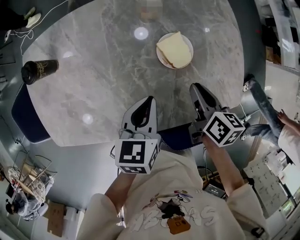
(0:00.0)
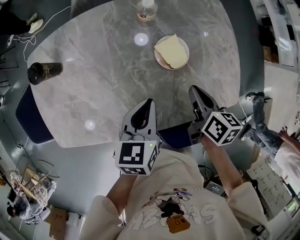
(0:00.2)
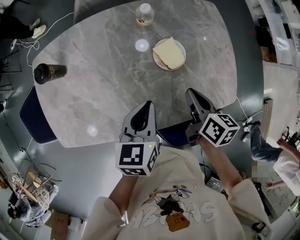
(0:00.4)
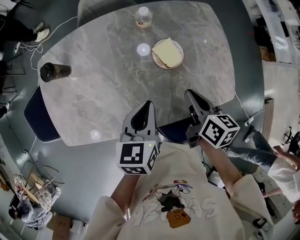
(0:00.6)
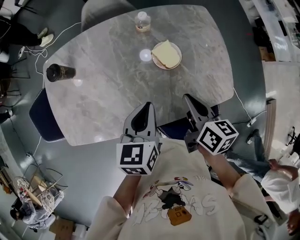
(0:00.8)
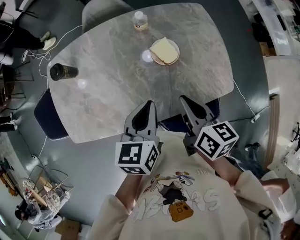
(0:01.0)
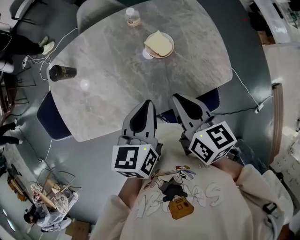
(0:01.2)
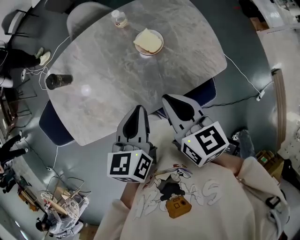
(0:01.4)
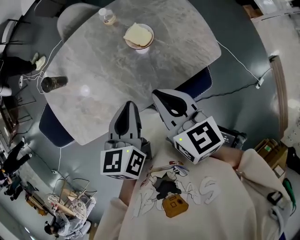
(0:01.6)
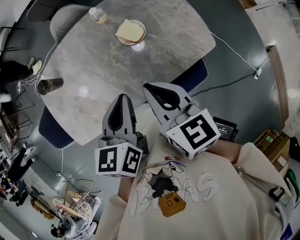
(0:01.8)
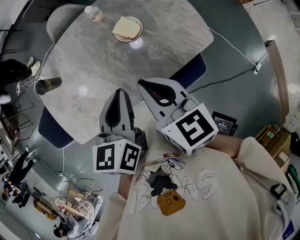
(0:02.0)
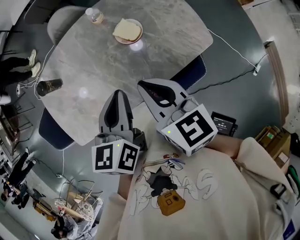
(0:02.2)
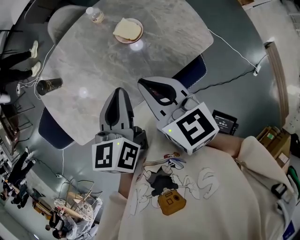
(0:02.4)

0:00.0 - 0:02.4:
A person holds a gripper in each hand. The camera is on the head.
0:00.0 - 0:01.2: The grippers both shift upward and backward by some 20 cm.
0:01.2 - 0:02.4: There are only small adjustments of the grippers.

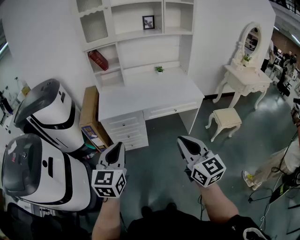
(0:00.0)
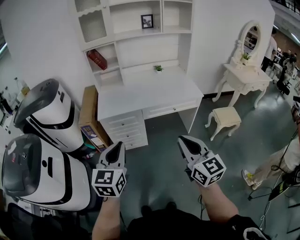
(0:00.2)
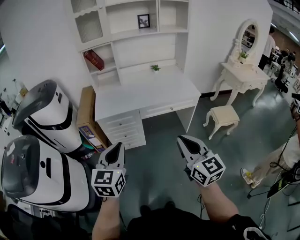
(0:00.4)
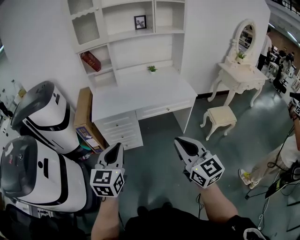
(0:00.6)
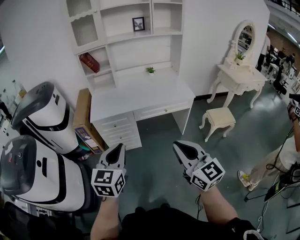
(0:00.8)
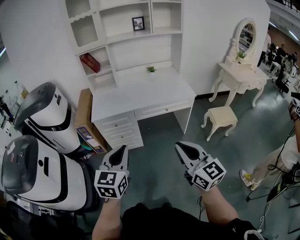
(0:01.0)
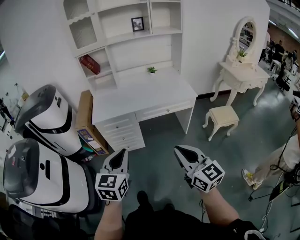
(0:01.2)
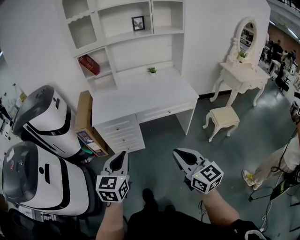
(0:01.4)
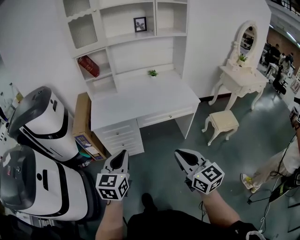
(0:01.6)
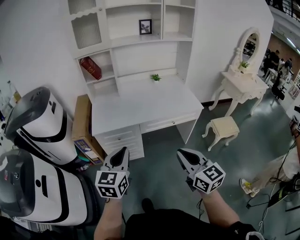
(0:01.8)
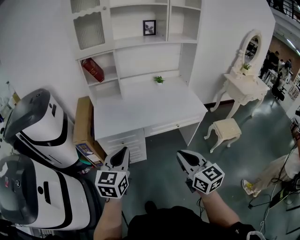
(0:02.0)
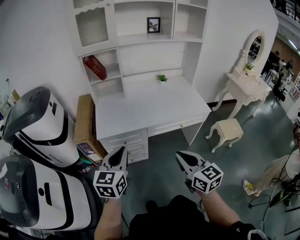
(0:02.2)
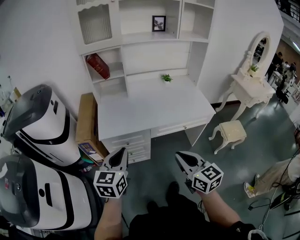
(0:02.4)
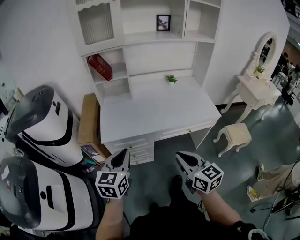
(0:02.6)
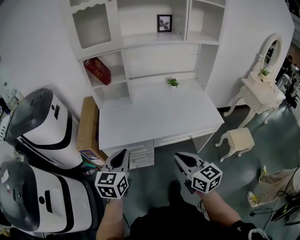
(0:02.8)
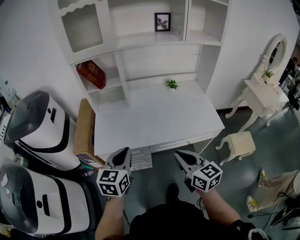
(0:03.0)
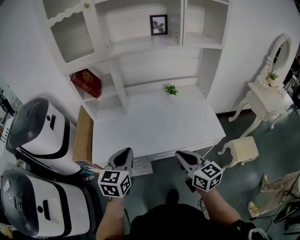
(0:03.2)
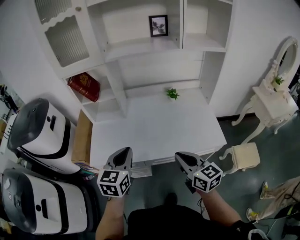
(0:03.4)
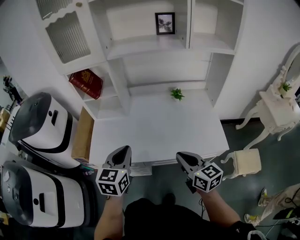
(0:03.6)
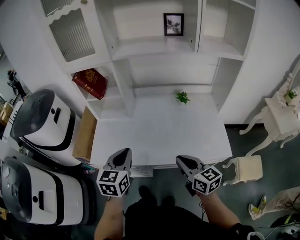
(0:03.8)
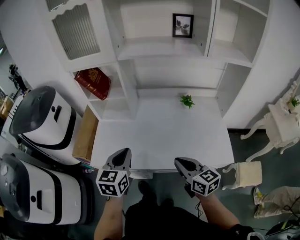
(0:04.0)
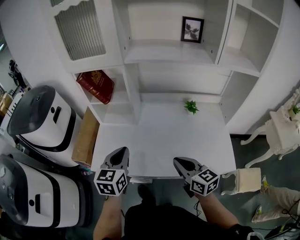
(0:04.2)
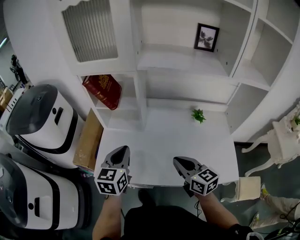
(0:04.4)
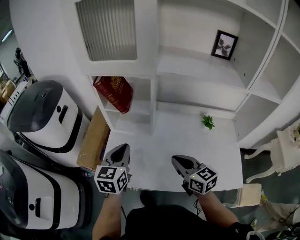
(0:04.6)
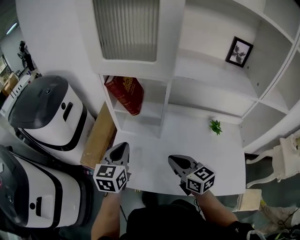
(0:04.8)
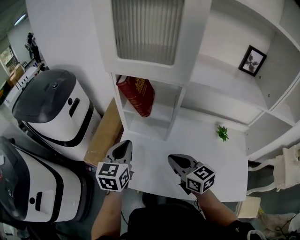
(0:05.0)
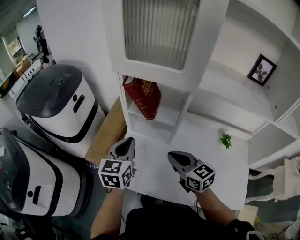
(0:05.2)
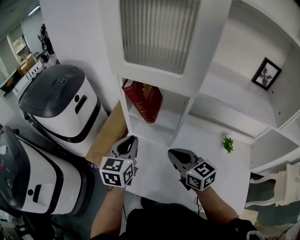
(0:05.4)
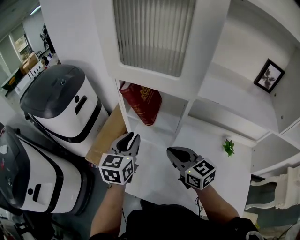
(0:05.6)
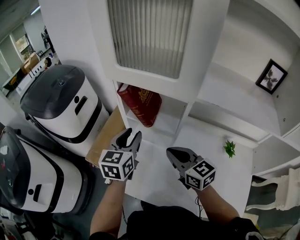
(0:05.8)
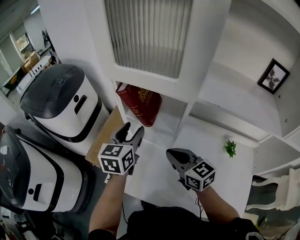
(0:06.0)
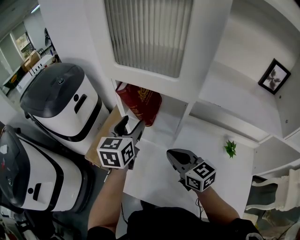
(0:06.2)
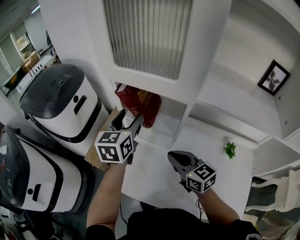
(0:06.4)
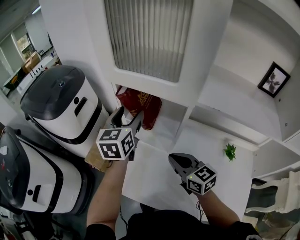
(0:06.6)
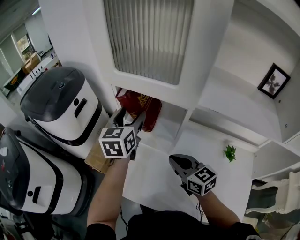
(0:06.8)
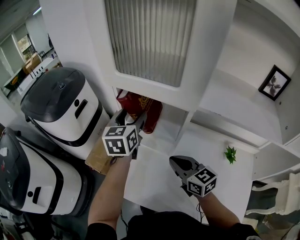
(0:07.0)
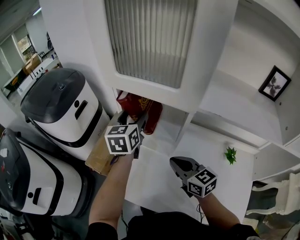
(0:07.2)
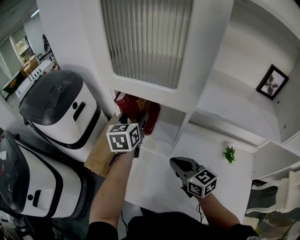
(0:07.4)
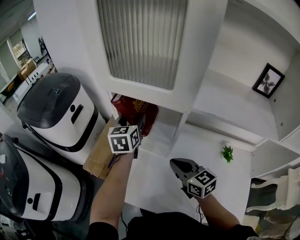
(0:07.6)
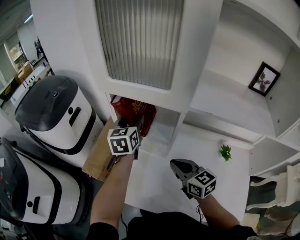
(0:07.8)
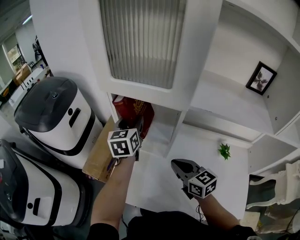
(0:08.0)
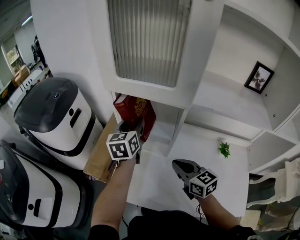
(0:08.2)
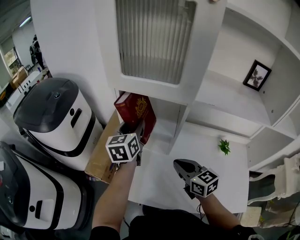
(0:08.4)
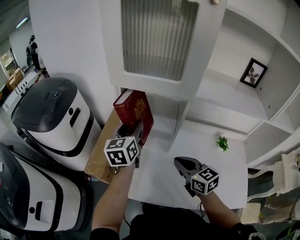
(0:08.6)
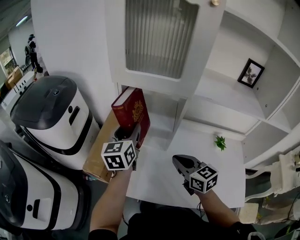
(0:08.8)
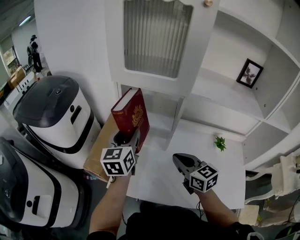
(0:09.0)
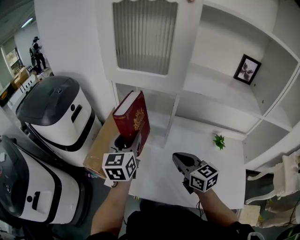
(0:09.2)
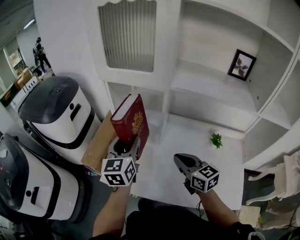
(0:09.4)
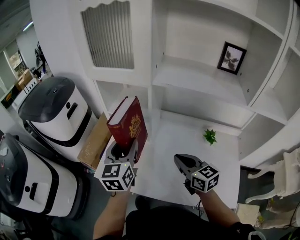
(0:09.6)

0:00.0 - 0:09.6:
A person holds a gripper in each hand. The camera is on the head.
0:00.0 - 0:01.6: The right gripper changes place by approximately 5 cm; the left gripper goes some 10 cm forward and downward.
0:01.6 - 0:03.2: The two grippers go approximately 35 cm forward.
0:03.2 - 0:04.8: The left gripper moves forward and to the left, approximately 30 cm, and rotates some 20 degrees. The right gripper goes about 30 cm forward, and changes its angle by approximately 20 degrees.
0:04.8 - 0:06.4: The left gripper heads forward and upward, covering some 20 cm, and opens. Meanwhile the right gripper moves forward, approximately 10 cm.
0:06.4 - 0:08.0: The left gripper shifts by some 5 cm.
0:08.0 - 0:09.6: The right gripper is displaced backward and to the right by some 15 cm. The left gripper travels backward by about 25 cm.

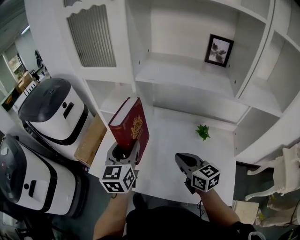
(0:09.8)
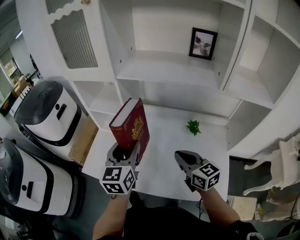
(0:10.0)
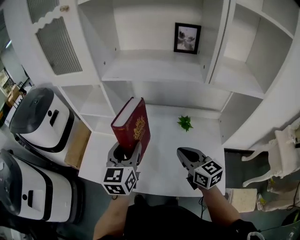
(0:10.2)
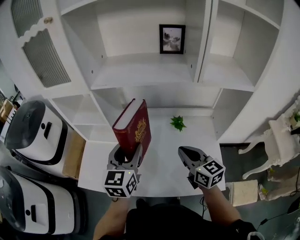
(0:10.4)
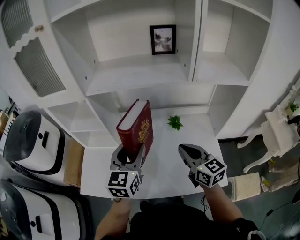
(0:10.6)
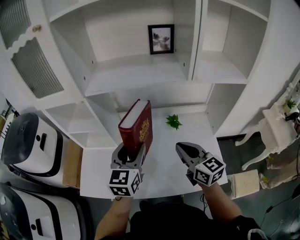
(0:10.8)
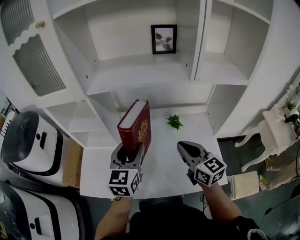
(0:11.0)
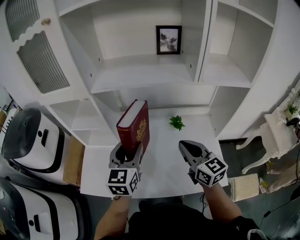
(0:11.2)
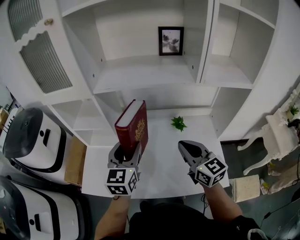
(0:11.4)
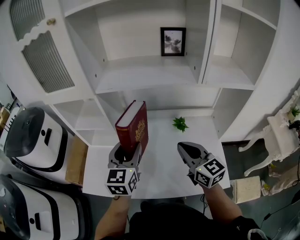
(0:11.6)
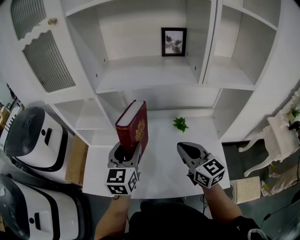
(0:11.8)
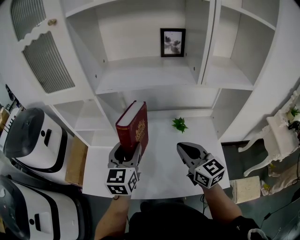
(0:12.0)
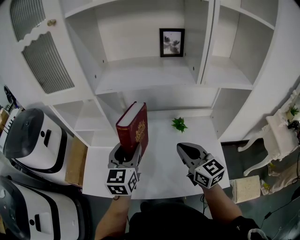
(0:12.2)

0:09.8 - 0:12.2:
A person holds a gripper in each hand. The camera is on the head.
0:09.8 - 0:11.0: The right gripper is displaced to the right and upward by about 15 cm, and turns by some 20 degrees; the left gripper goes some 15 cm to the right, and changes its angle by about 20 degrees.
0:11.0 - 0:12.2: There are only small adjustments of the grippers.

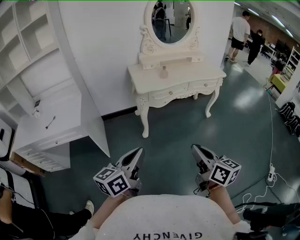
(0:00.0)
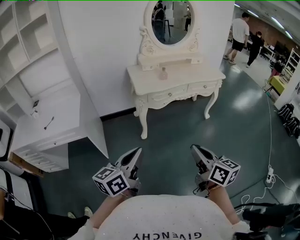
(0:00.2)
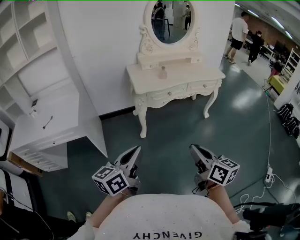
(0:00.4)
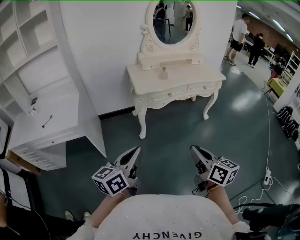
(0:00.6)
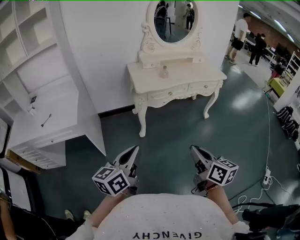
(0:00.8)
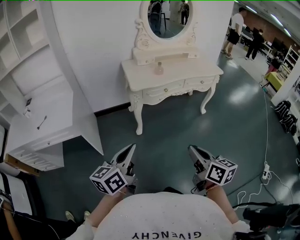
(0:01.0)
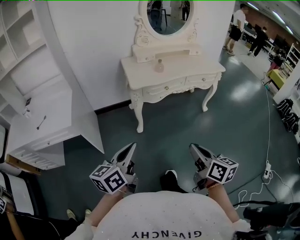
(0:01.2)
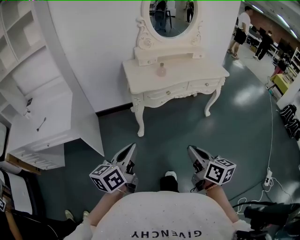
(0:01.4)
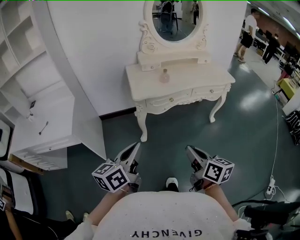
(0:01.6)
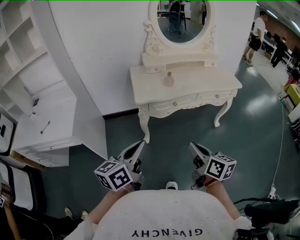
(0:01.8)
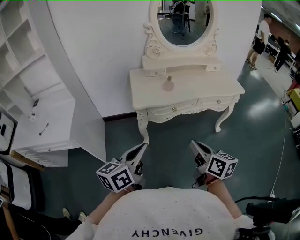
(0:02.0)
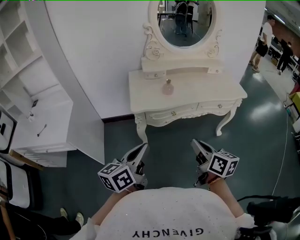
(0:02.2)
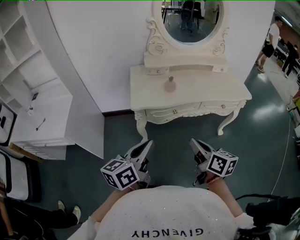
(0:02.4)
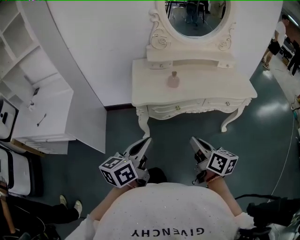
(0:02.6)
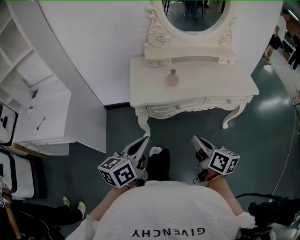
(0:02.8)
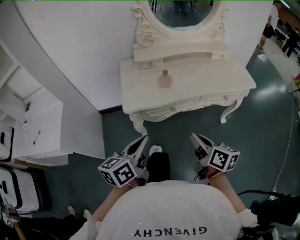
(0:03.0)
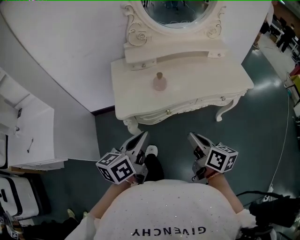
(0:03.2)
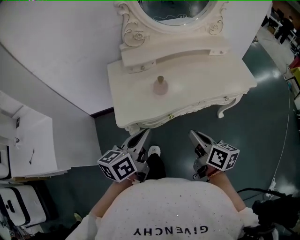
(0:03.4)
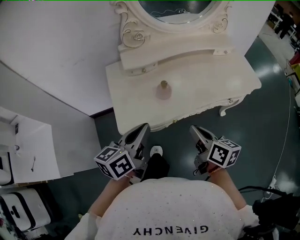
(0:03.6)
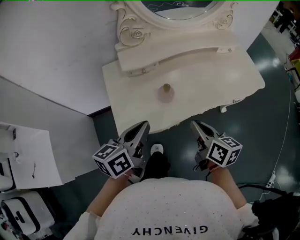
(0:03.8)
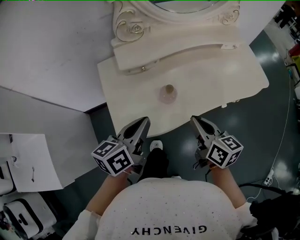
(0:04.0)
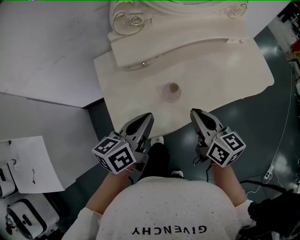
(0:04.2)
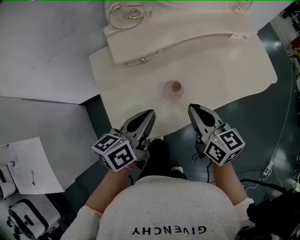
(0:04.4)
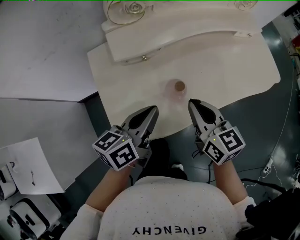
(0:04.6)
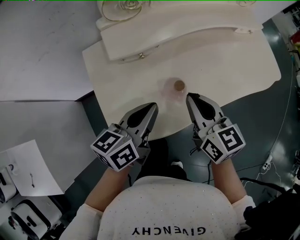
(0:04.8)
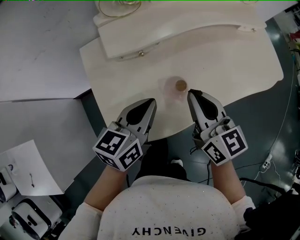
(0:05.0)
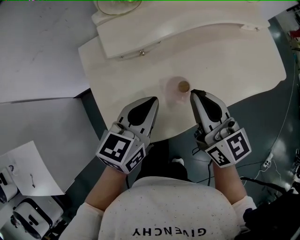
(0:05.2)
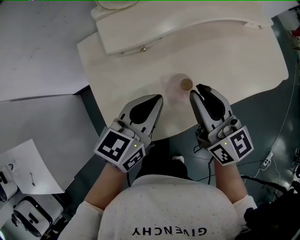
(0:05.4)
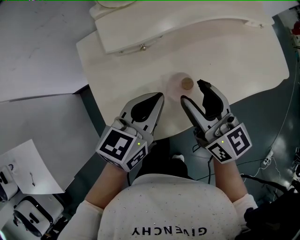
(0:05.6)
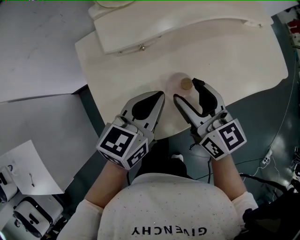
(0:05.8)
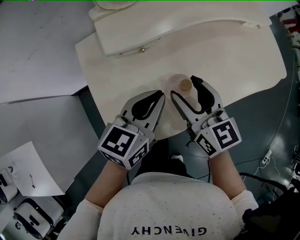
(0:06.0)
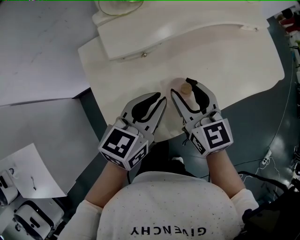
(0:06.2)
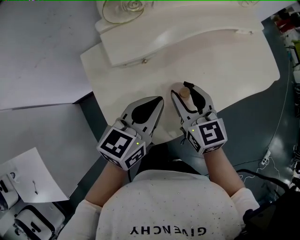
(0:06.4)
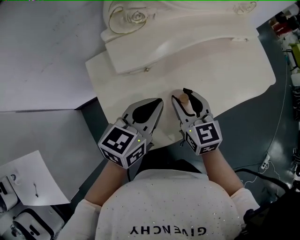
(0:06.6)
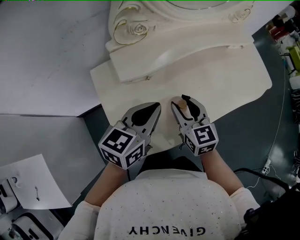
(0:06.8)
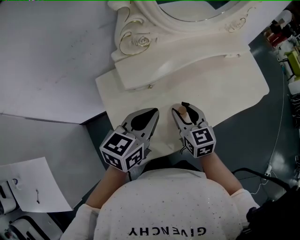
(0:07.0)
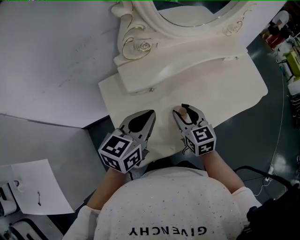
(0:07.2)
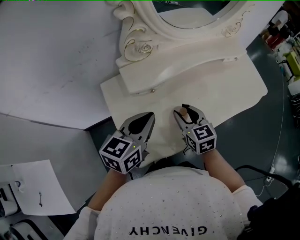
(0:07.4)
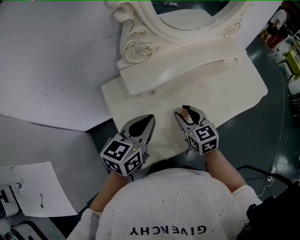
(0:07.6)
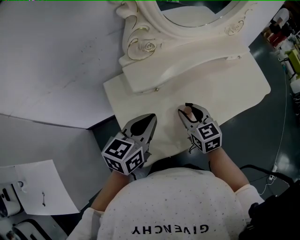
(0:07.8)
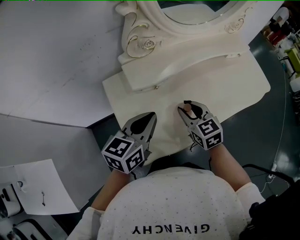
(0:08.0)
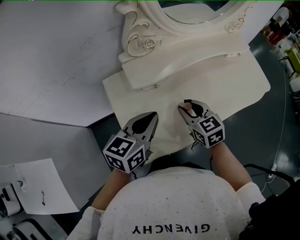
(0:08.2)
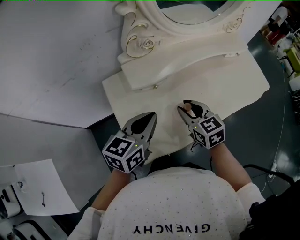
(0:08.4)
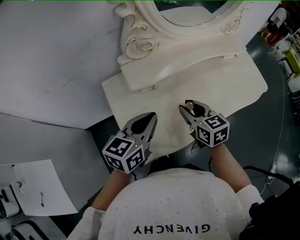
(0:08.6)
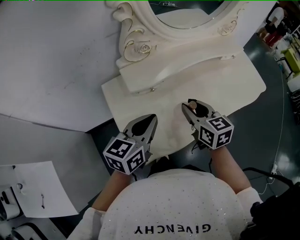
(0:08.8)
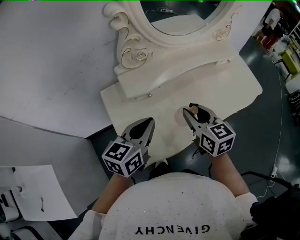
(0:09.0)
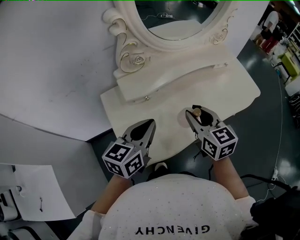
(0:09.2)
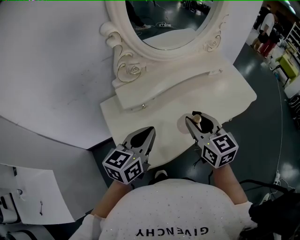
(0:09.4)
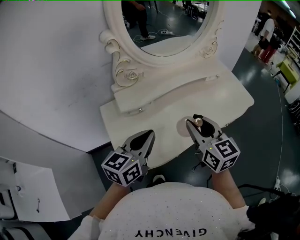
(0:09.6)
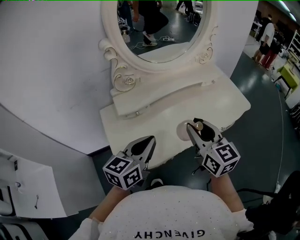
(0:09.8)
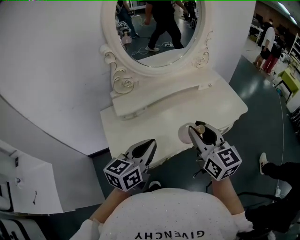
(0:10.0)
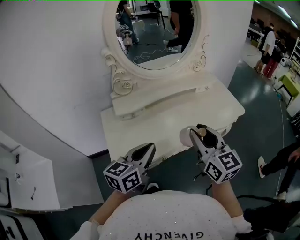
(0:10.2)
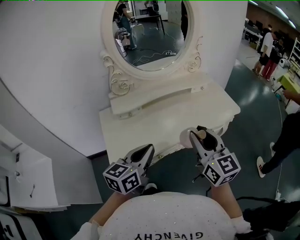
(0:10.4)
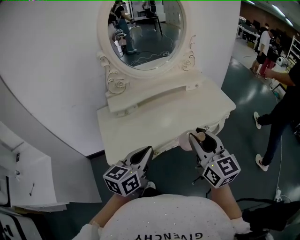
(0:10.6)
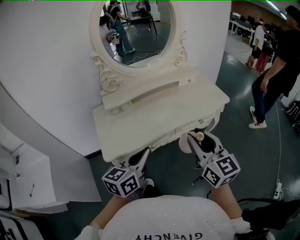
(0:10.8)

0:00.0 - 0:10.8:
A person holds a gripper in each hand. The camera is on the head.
0:00.0 - 0:01.6: Both grippers move forward, about 15 cm.
0:01.6 - 0:03.0: The right gripper shifts approximately 25 cm forward; the left gripper shifts roughly 25 cm forward and to the right.
0:03.0 - 0:04.6: Both grippers move forward, approximately 30 cm. The right gripper changes its angle by some 30 degrees.
0:04.6 - 0:06.2: The left gripper turns by roughly 20 degrees, while the right gripper heads forward, covering approximately 5 cm, and opens.
0:06.2 - 0:07.8: The left gripper goes some 10 cm upward and to the left.
0:07.8 - 0:09.2: The right gripper heads upward and to the right, covering approximately 10 cm. Meanwhile the left gripper moves roughly 5 cm.
0:09.2 - 0:10.8: The left gripper goes roughly 30 cm to the right and backward, while the right gripper goes about 35 cm to the right, backward and upward, and swivels approximately 20 degrees.
